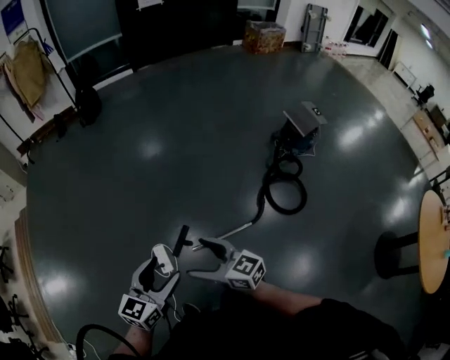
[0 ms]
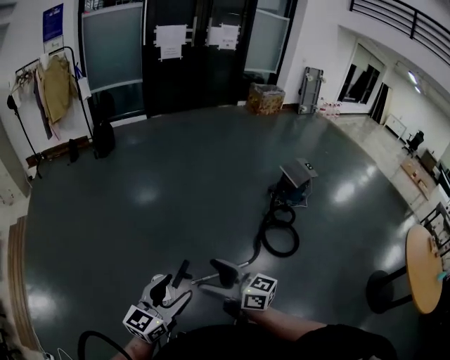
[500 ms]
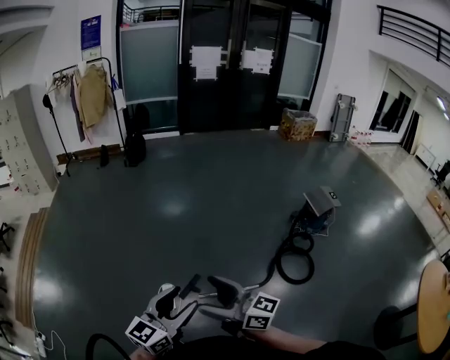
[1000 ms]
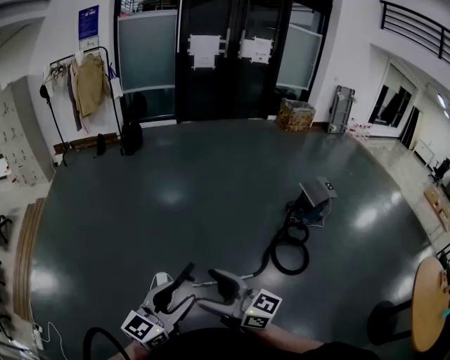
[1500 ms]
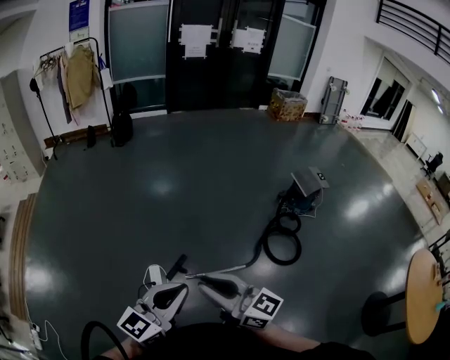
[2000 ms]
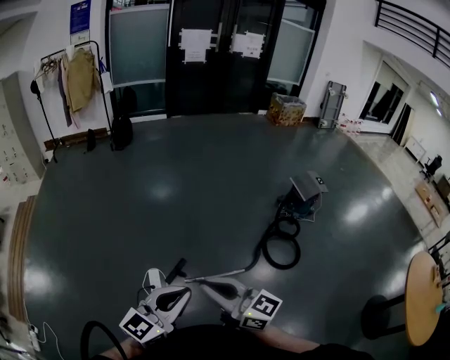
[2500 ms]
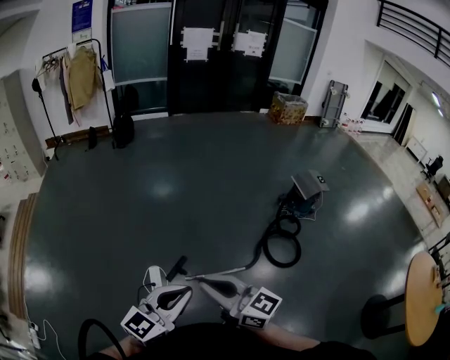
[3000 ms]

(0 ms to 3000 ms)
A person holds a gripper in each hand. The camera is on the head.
0 ms - 1500 ms: Both grippers travel together upward and backward, roughly 20 cm.
1500 ms - 3000 ms: The left gripper closes; the right gripper closes its fingers.

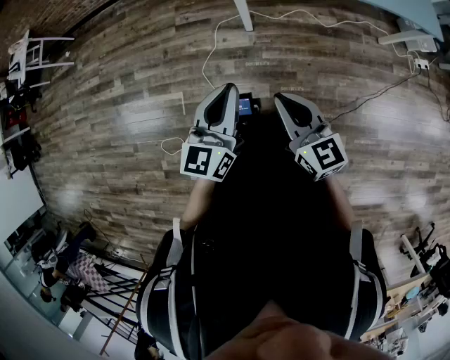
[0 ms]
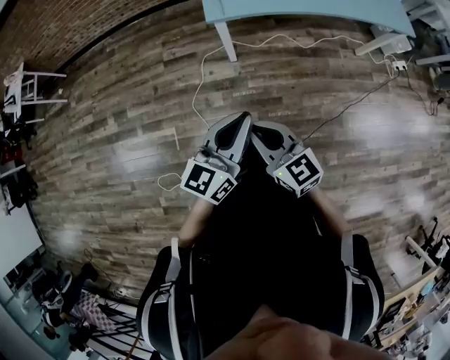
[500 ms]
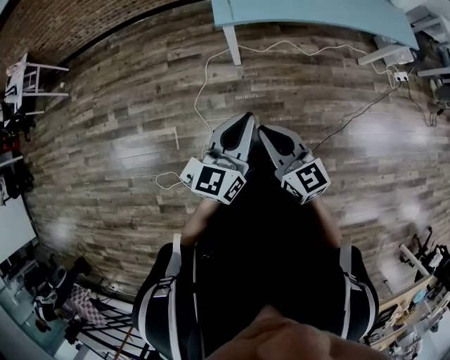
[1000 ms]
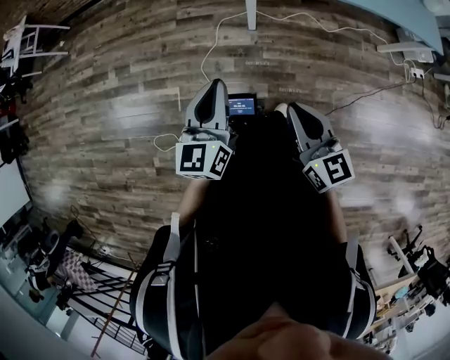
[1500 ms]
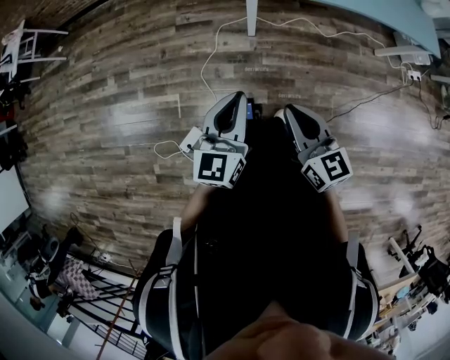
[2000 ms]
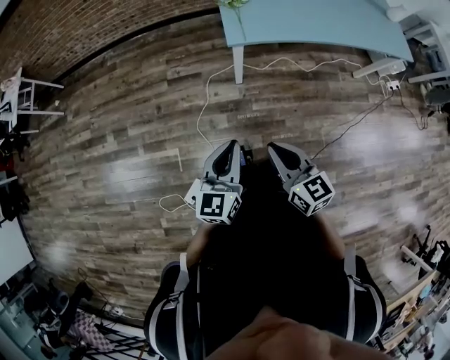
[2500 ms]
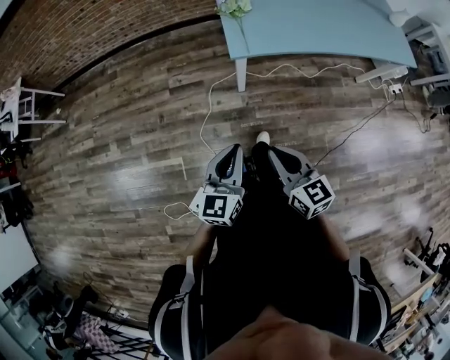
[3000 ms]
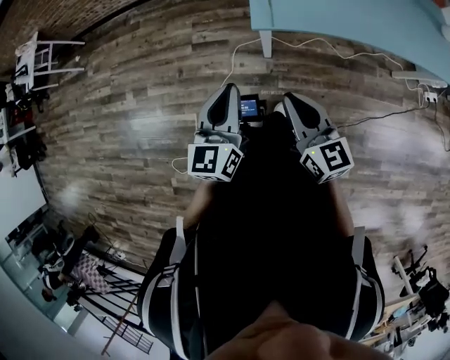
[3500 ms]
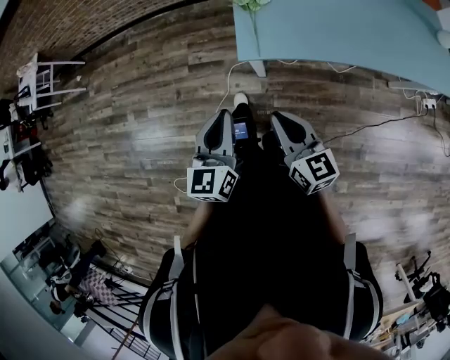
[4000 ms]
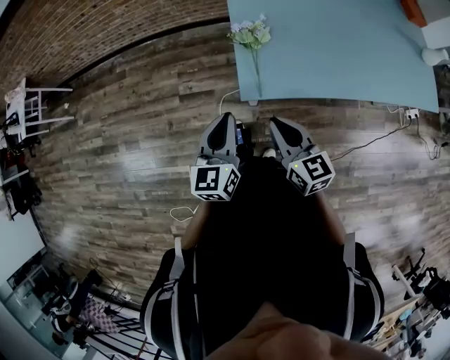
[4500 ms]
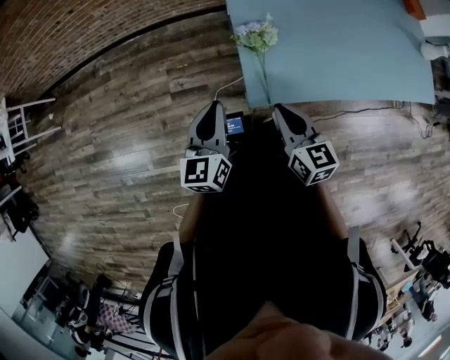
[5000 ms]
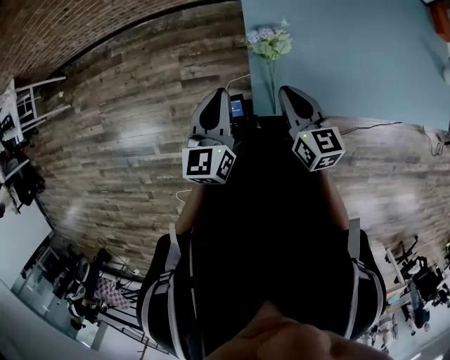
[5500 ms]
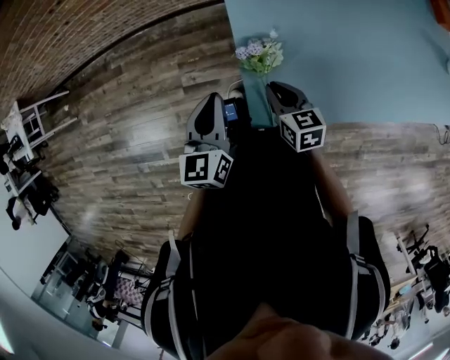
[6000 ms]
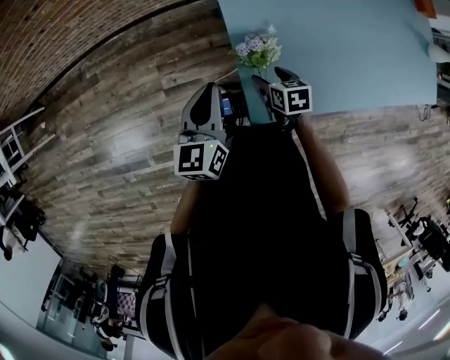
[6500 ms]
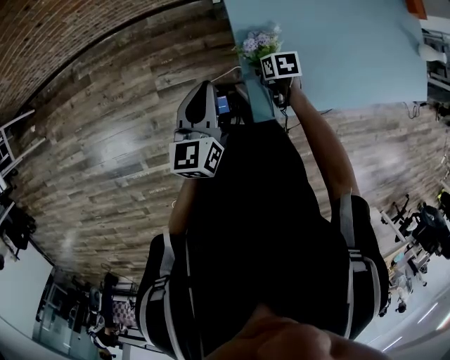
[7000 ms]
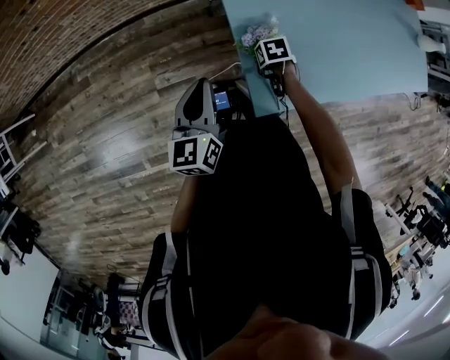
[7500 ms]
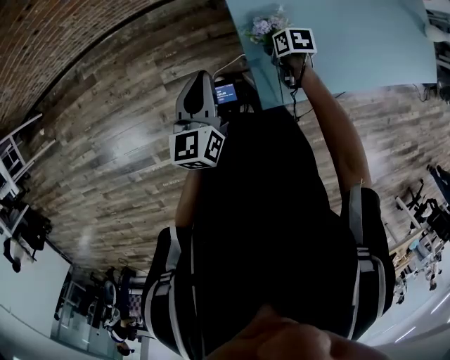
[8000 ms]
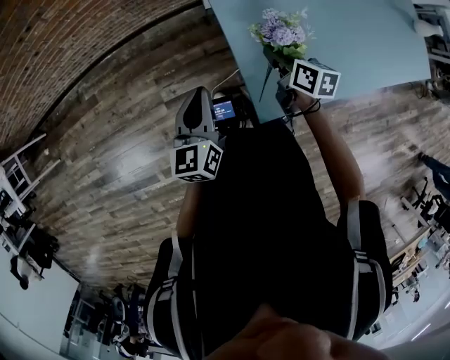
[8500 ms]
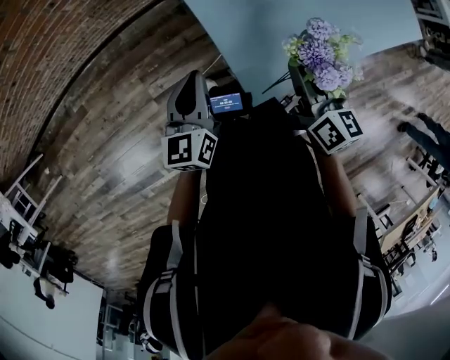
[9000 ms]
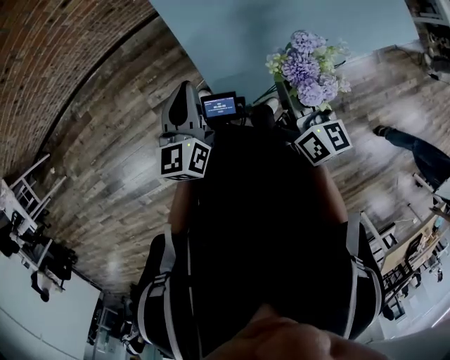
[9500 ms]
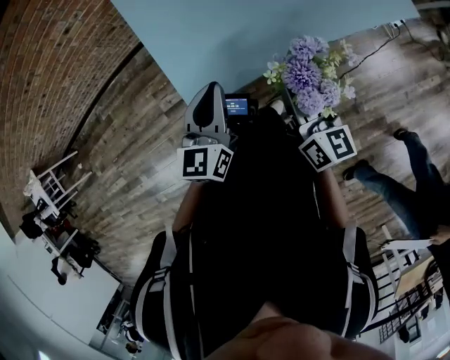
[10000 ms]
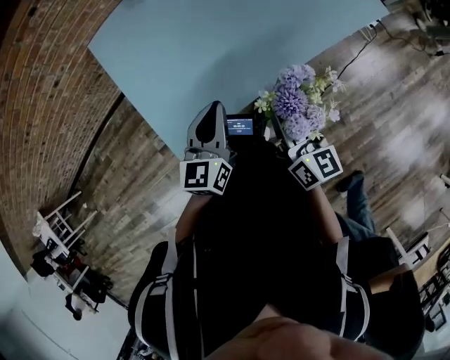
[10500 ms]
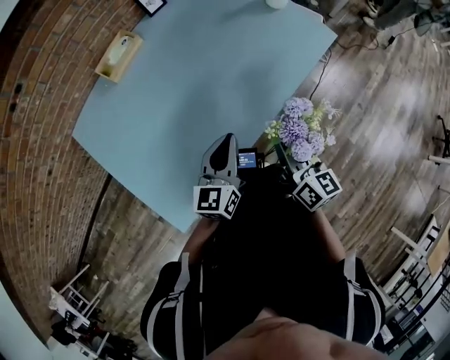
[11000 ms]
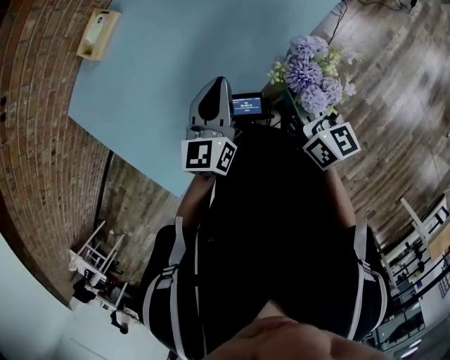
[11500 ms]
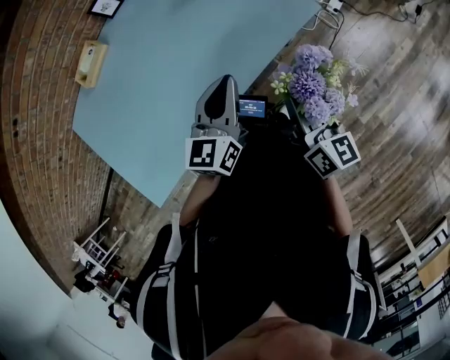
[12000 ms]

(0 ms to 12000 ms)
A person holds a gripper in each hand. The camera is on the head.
0 ms - 2000 ms: Both grippers move to the left, some 5 cm.
2000 ms - 4000 ms: Both grippers travel together forward, approximately 25 cm.
4000 ms - 6000 ms: The grippers both shift forward by about 40 cm. The right gripper turns by approximately 20 degrees.
6000 ms - 8000 ms: The right gripper goes some 15 cm downward, points its fingers approximately 30 degrees further downward, and opens and closes again, while the left gripper shifts by about 10 cm.
8000 ms - 10000 ms: The right gripper changes place by approximately 50 cm, and tilts its fingers approximately 60 degrees upward; the left gripper ends up roughly 40 cm from where it was, and rotates about 20 degrees.
10000 ms - 12000 ms: The two grippers travel together, to the right and forward, approximately 60 cm. The left gripper rotates about 20 degrees.

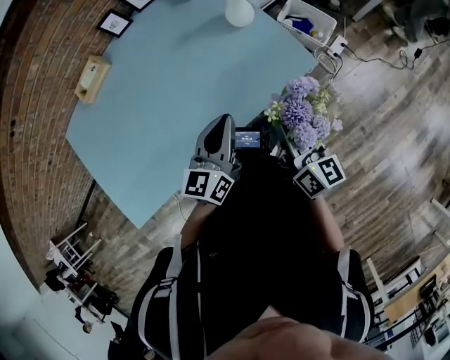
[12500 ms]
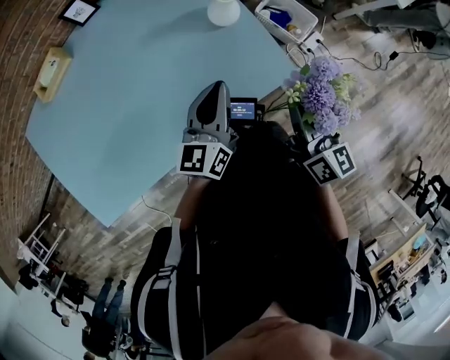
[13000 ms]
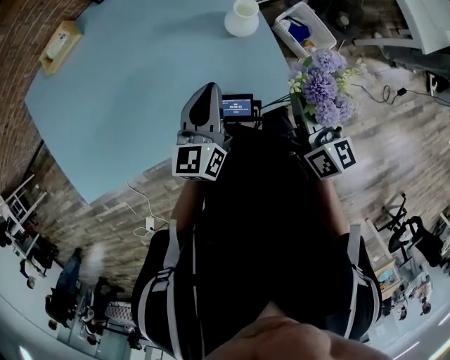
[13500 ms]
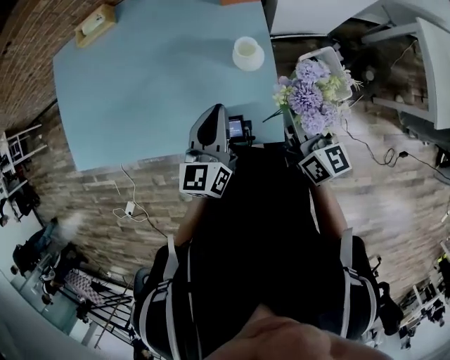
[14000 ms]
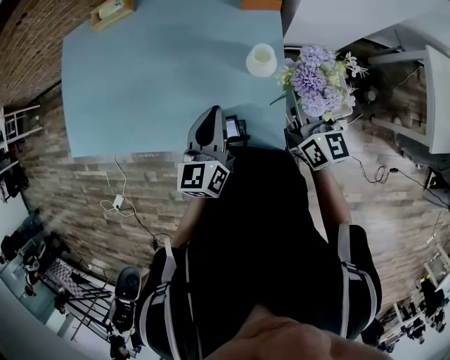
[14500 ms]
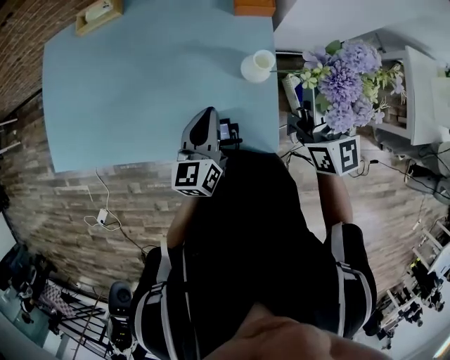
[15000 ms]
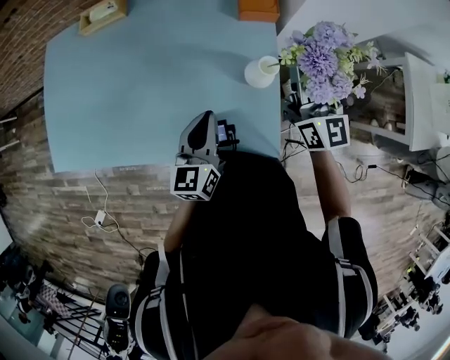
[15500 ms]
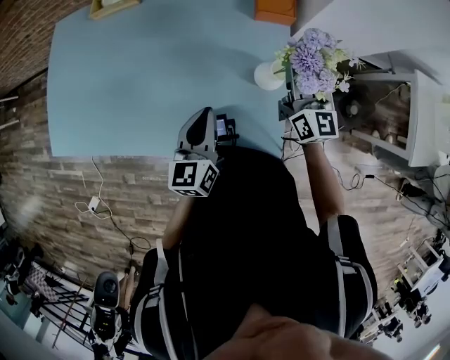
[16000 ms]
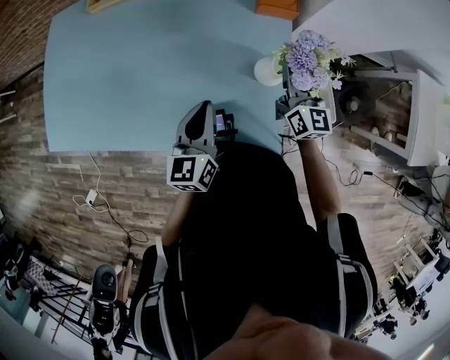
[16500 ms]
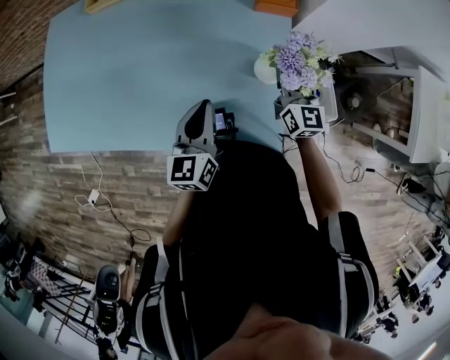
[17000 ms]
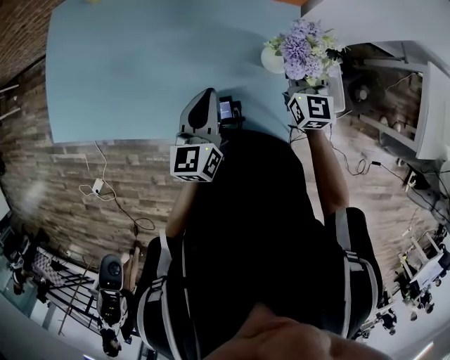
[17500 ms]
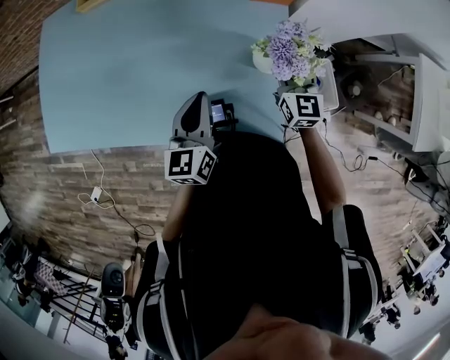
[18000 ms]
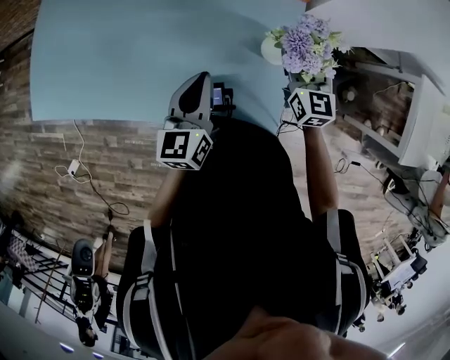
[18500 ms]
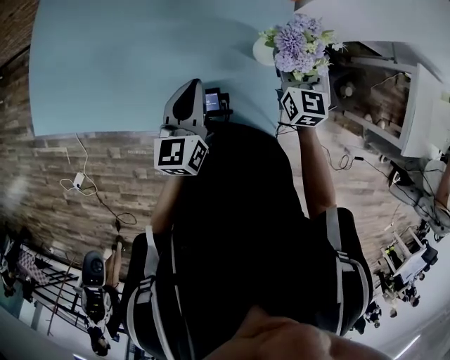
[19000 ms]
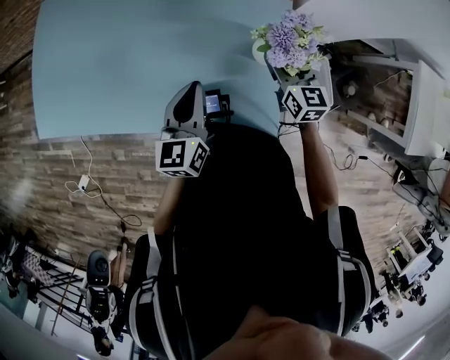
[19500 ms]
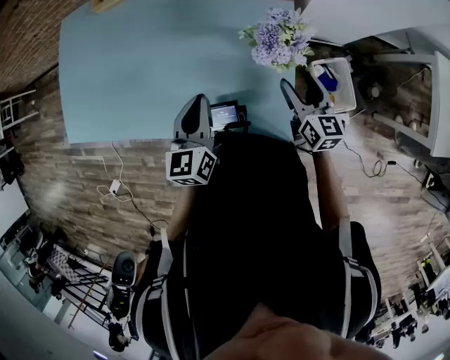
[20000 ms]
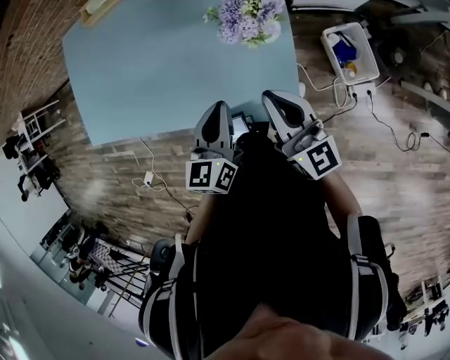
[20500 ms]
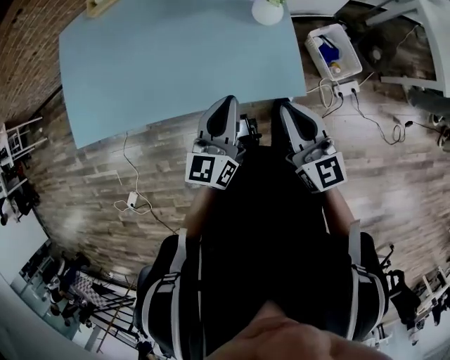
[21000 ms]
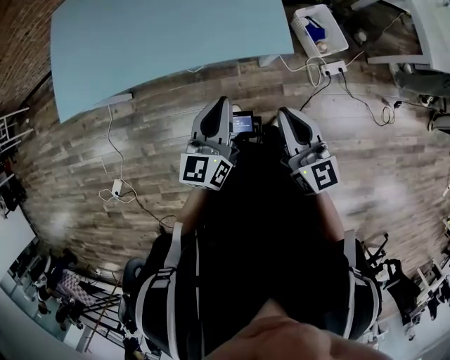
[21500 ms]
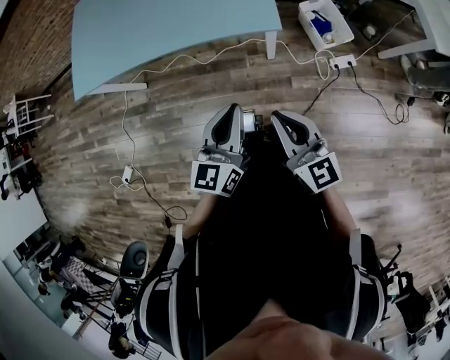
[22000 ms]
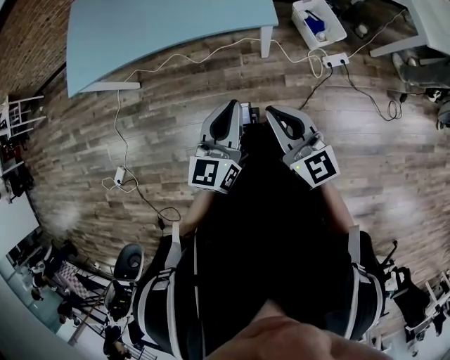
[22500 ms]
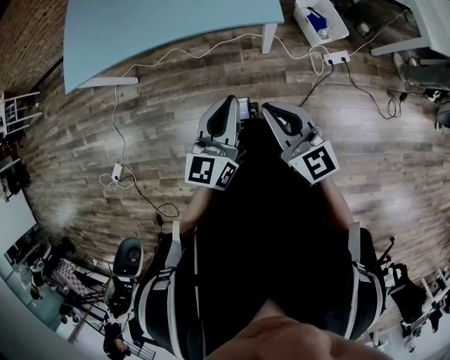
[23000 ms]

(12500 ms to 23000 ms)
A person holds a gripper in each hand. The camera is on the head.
12500 ms - 14500 ms: The right gripper ends up roughly 35 cm from where it was, and turns by some 40 degrees, while the left gripper ends up some 20 cm from where it was, and turns by roughly 50 degrees.
14500 ms - 16500 ms: The right gripper moves forward and to the left, roughly 10 cm, and travels upward and back again, approximately 15 cm each way; the left gripper heads to the left, covering approximately 5 cm.
16500 ms - 19000 ms: The right gripper opens.
19000 ms - 21000 ms: The left gripper travels backward by about 20 cm; the right gripper heads backward, covering roughly 35 cm, and closes its fingers.
21000 ms - 23000 ms: The grippers both shift backward by roughly 35 cm.

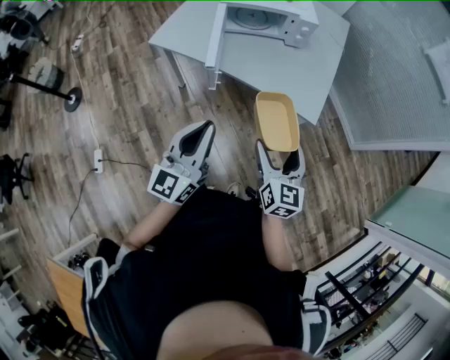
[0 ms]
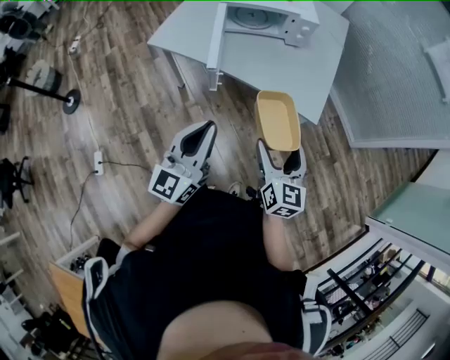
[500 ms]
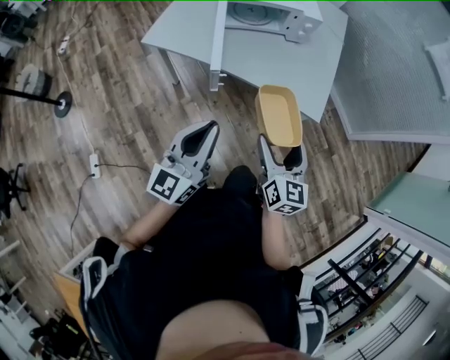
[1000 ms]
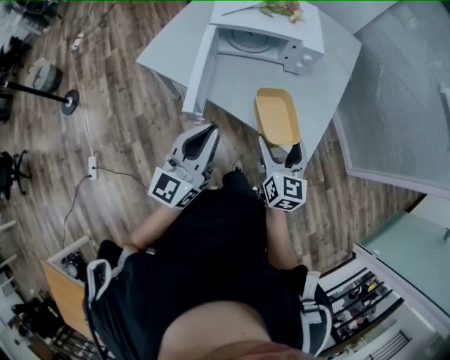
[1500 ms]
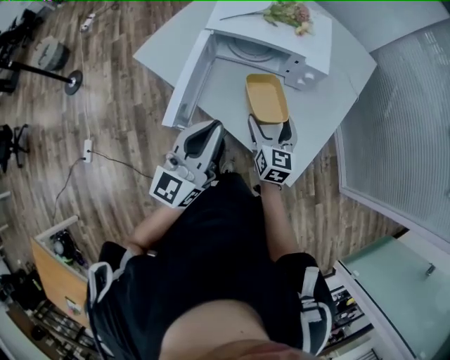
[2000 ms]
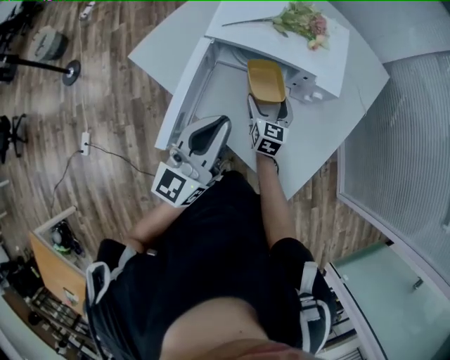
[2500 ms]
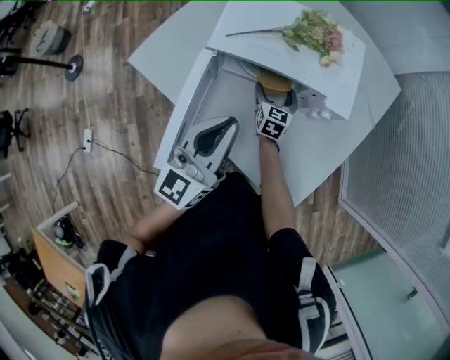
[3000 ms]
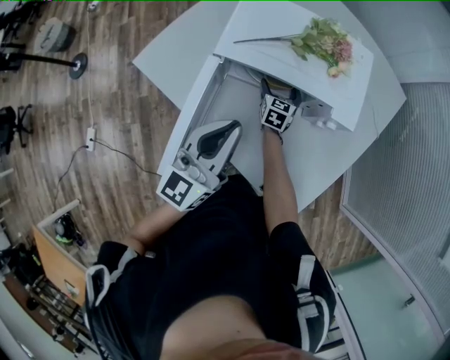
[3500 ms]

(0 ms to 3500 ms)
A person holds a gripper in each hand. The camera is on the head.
0 ms - 2000 ms: Both grippers move forward, about 35 cm.
2000 ms - 3500 ms: The right gripper moves forward and downward, about 35 cm, while the left gripper shifts about 20 cm forward.
